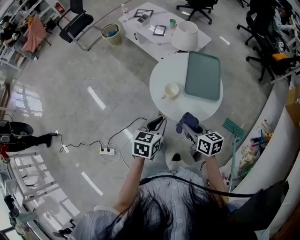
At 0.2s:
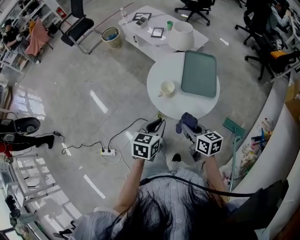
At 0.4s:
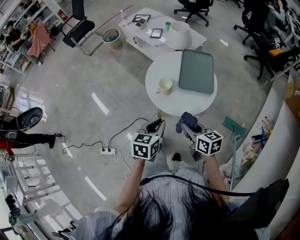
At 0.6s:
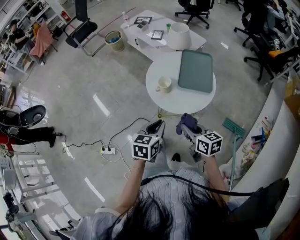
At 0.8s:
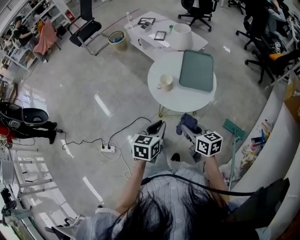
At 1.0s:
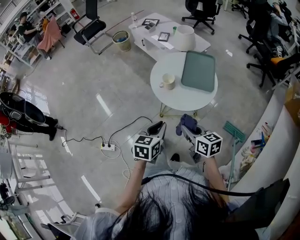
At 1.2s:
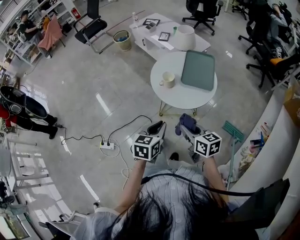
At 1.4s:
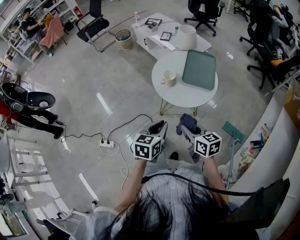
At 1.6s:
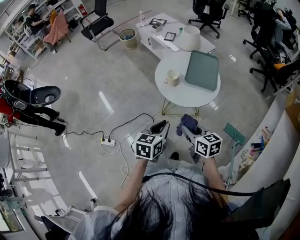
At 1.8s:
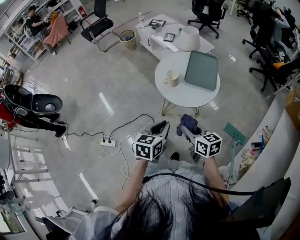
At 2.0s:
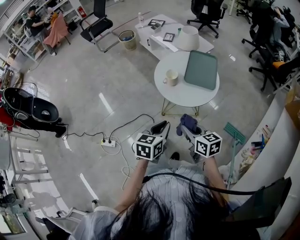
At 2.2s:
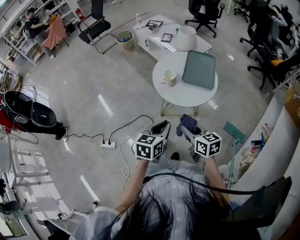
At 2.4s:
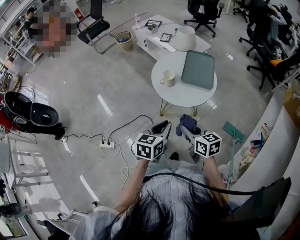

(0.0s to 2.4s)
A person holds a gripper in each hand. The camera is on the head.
0.0s - 1.2s: The two grippers go roughly 15 cm backward.
1.2s - 2.4s: The grippers move only a little.

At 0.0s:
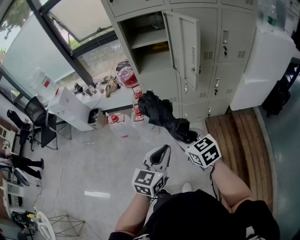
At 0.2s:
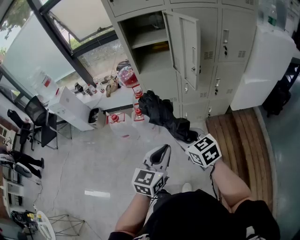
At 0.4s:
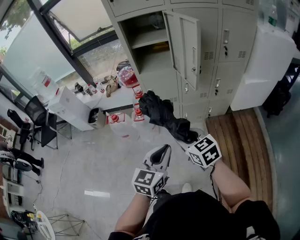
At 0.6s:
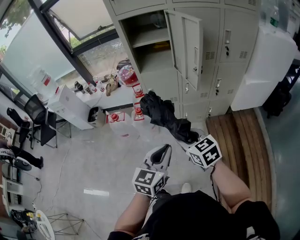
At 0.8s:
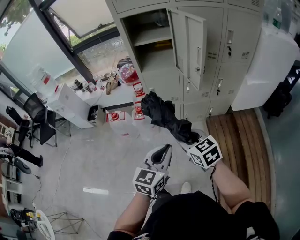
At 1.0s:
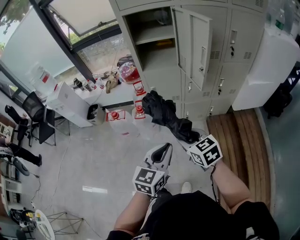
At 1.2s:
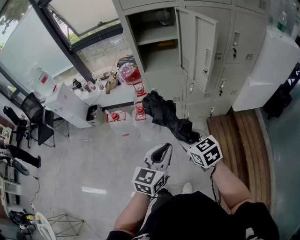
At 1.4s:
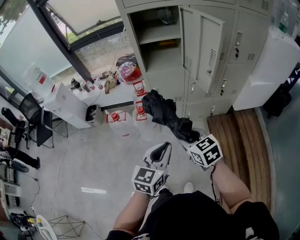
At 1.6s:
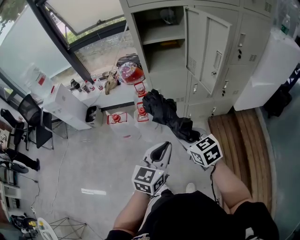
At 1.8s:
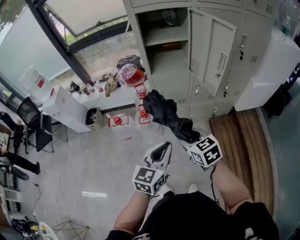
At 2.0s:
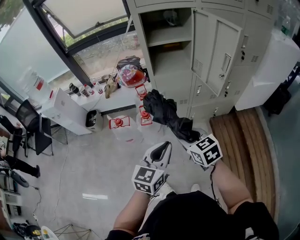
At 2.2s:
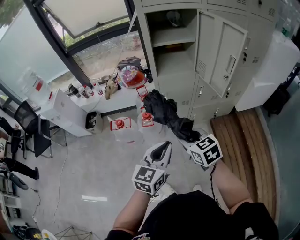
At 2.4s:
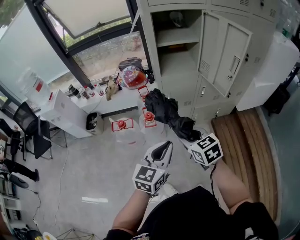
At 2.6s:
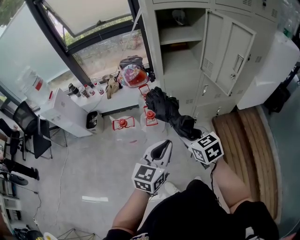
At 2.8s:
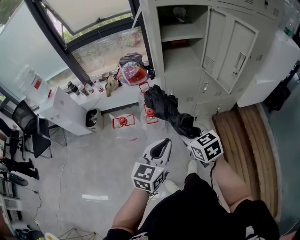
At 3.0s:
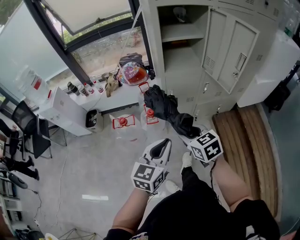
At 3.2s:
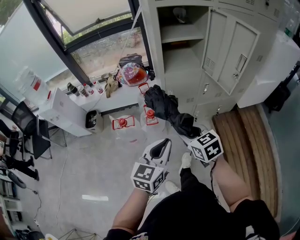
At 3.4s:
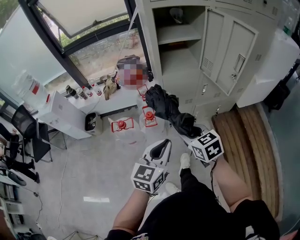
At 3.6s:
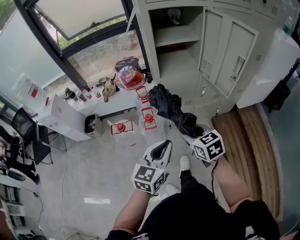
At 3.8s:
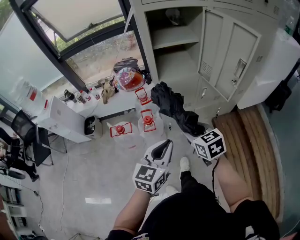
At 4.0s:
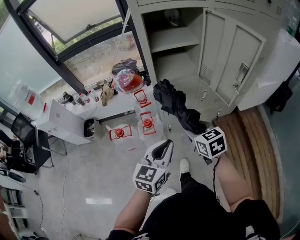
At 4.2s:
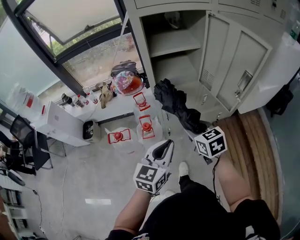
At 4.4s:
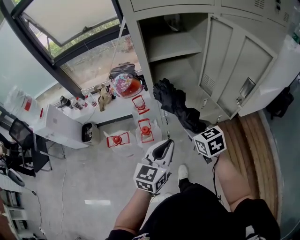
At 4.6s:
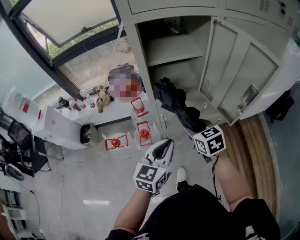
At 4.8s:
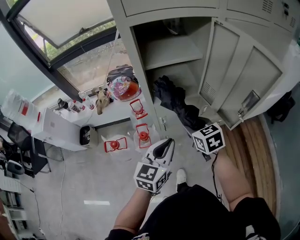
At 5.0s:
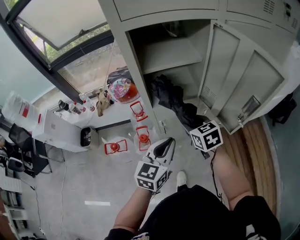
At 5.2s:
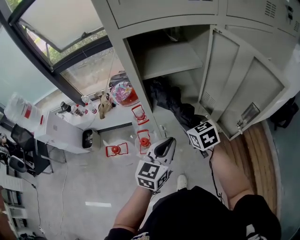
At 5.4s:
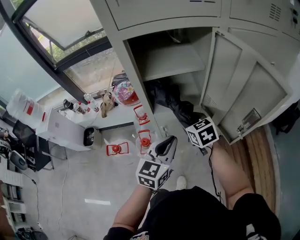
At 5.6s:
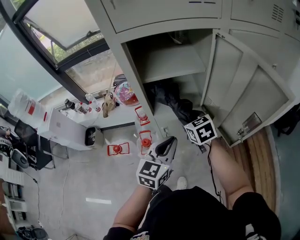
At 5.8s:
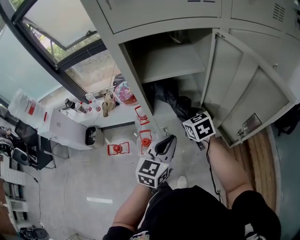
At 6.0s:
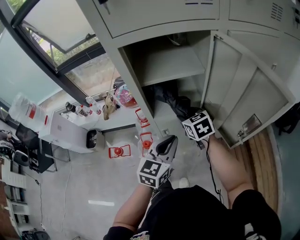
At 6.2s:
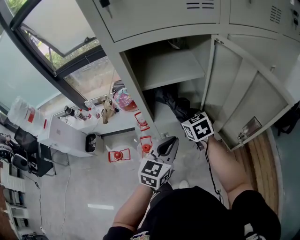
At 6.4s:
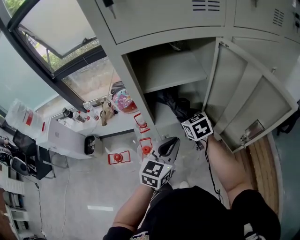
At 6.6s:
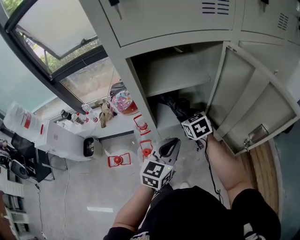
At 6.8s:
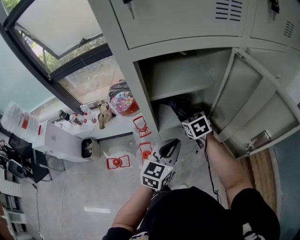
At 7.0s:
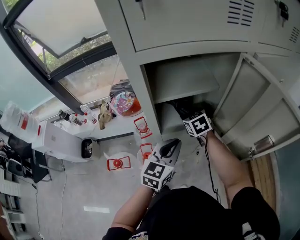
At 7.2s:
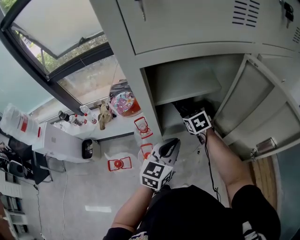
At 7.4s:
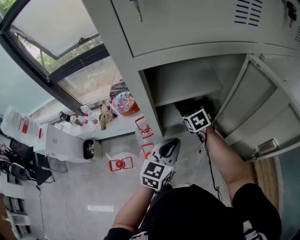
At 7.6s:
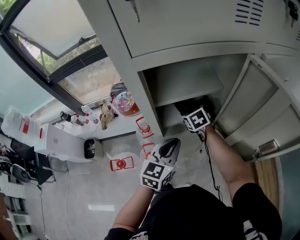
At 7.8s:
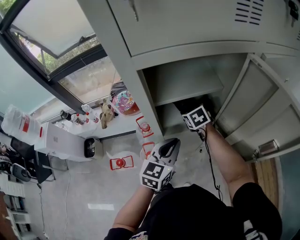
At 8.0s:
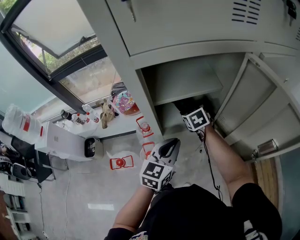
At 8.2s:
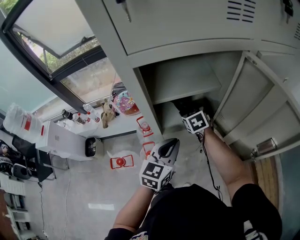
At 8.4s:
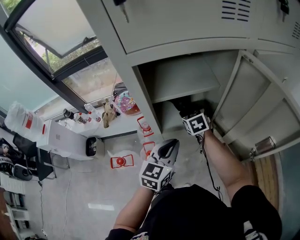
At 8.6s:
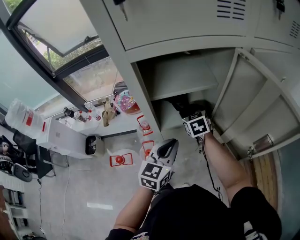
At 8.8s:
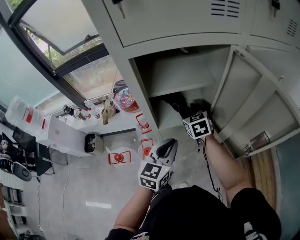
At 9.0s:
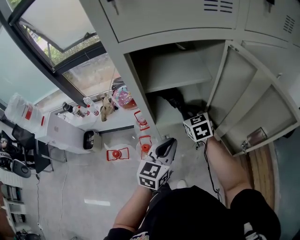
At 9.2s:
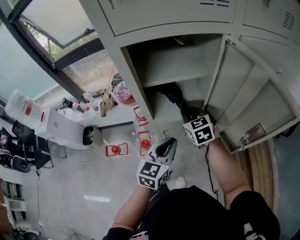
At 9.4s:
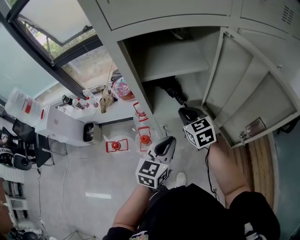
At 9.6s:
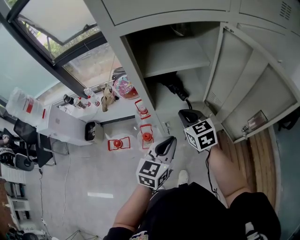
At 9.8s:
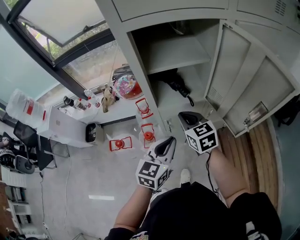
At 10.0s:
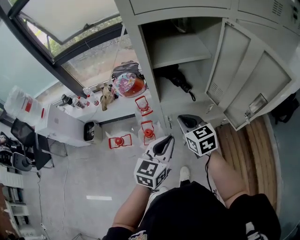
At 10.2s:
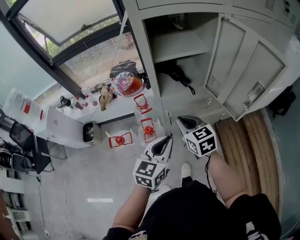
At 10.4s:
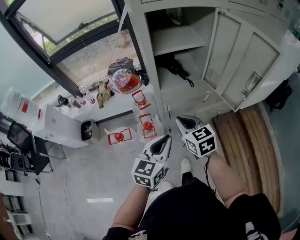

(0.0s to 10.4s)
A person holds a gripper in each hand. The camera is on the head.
0.0s - 1.4s: The left gripper shifts about 10 cm forward and to the left; the right gripper goes some 5 cm forward.
1.4s - 3.0s: The two grippers go roughly 15 cm to the left and forward.
3.0s - 4.4s: The grippers both shift forward and to the right by roughly 20 cm.
4.4s - 6.0s: Both grippers travel together forward, roughly 15 cm.
6.0s - 7.4s: The right gripper is displaced forward by some 10 cm, while the left gripper shifts about 10 cm forward.
7.4s - 9.0s: The grippers both shift backward by some 5 cm.
9.0s - 10.4s: The right gripper moves backward, approximately 25 cm. The left gripper heads backward and to the left, covering roughly 20 cm.

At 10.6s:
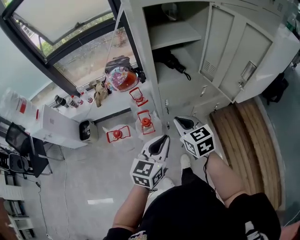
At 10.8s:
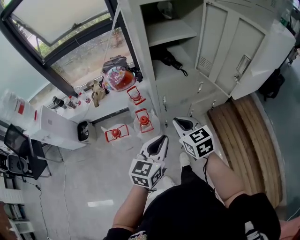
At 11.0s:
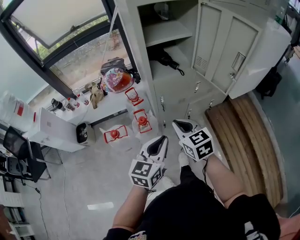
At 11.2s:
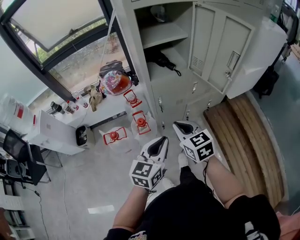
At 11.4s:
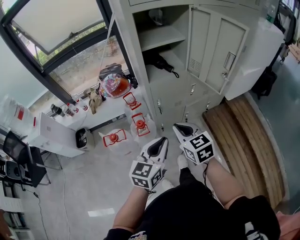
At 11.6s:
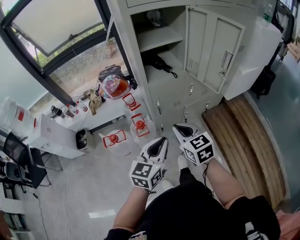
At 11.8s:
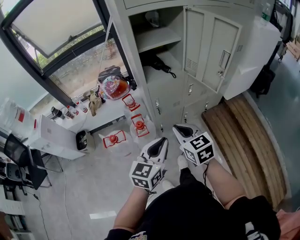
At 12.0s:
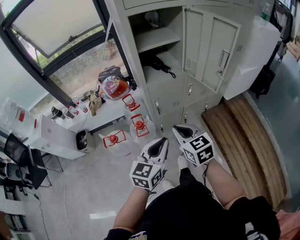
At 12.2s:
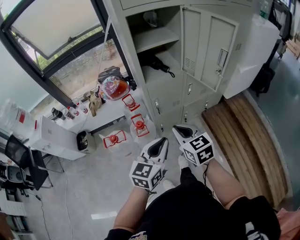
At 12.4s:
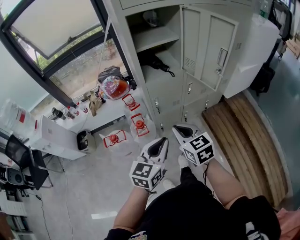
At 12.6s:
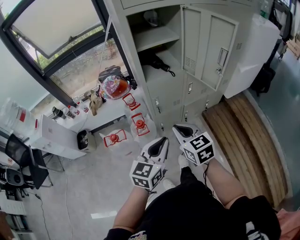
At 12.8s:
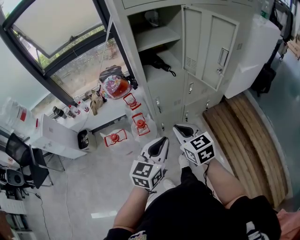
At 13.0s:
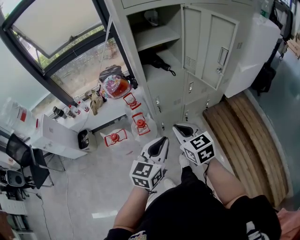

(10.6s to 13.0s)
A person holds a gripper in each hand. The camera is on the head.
10.6s - 11.8s: The grippers both shift backward by roughly 10 cm.
11.8s - 13.0s: Both grippers stay put.

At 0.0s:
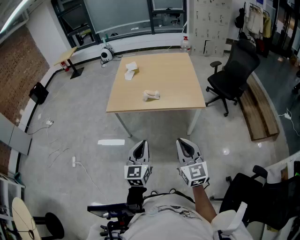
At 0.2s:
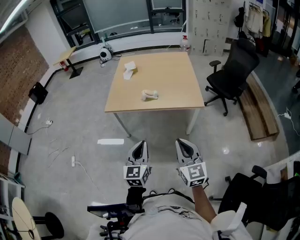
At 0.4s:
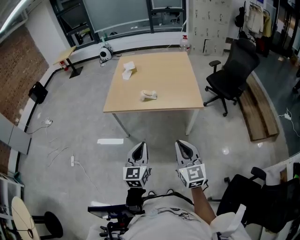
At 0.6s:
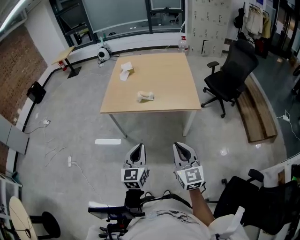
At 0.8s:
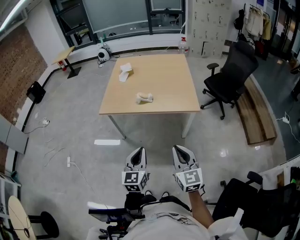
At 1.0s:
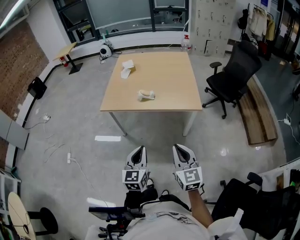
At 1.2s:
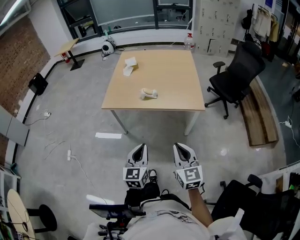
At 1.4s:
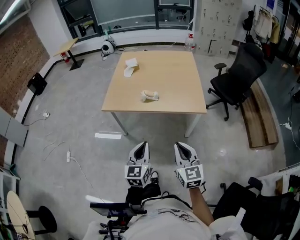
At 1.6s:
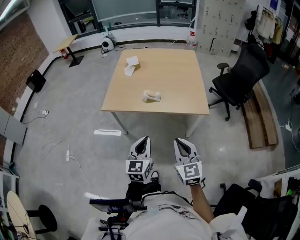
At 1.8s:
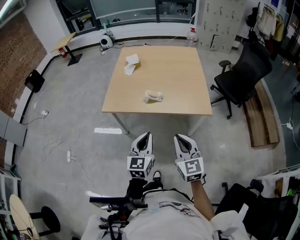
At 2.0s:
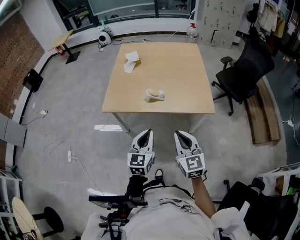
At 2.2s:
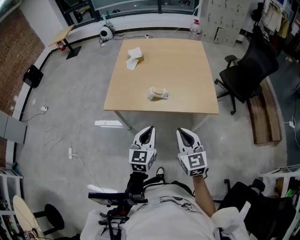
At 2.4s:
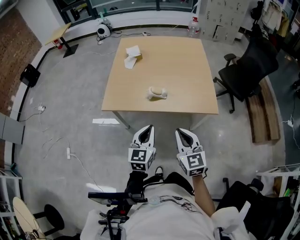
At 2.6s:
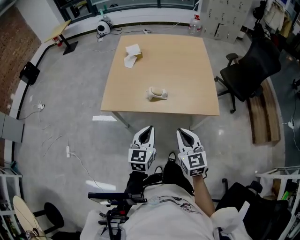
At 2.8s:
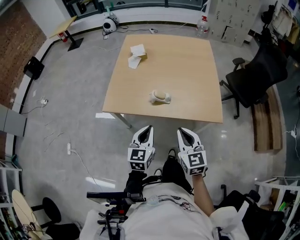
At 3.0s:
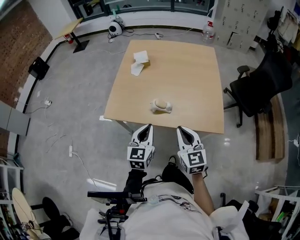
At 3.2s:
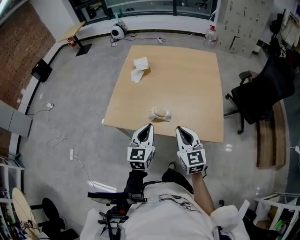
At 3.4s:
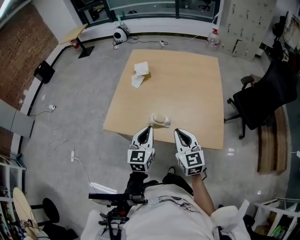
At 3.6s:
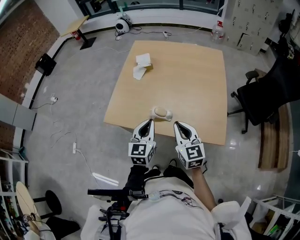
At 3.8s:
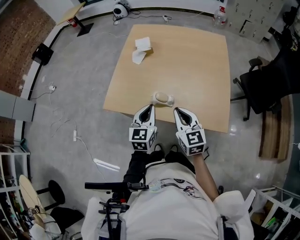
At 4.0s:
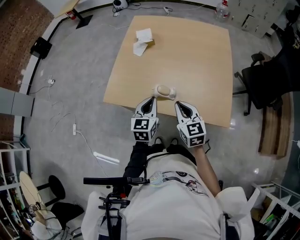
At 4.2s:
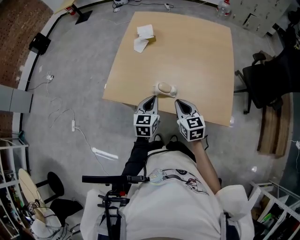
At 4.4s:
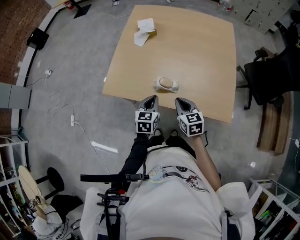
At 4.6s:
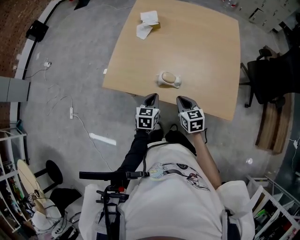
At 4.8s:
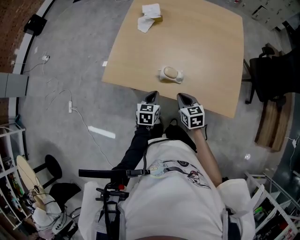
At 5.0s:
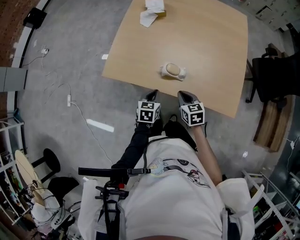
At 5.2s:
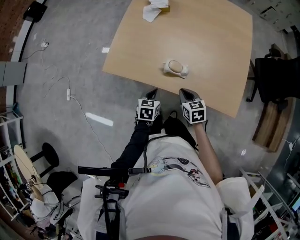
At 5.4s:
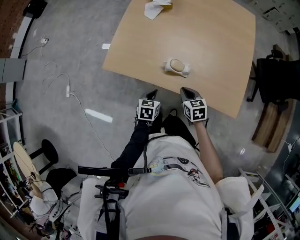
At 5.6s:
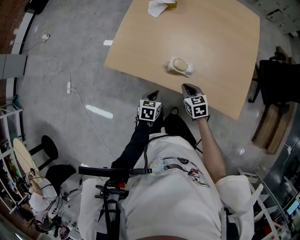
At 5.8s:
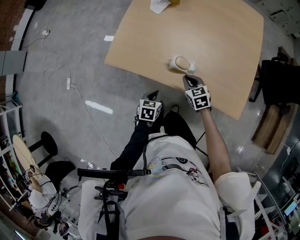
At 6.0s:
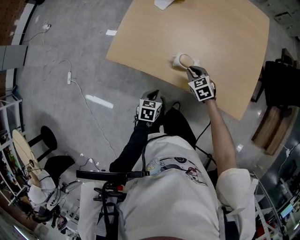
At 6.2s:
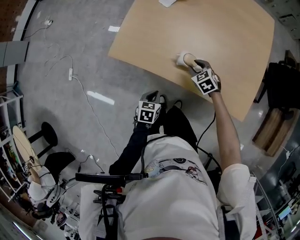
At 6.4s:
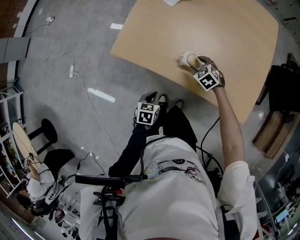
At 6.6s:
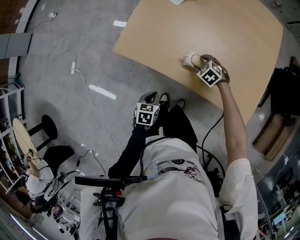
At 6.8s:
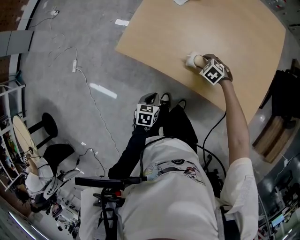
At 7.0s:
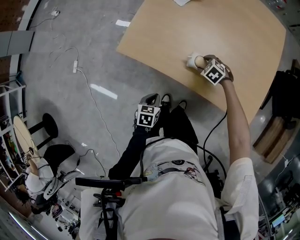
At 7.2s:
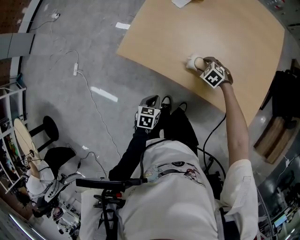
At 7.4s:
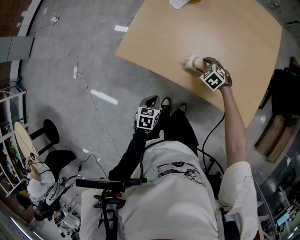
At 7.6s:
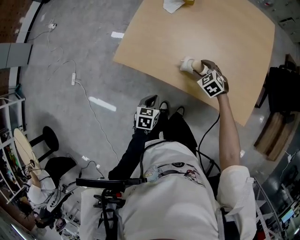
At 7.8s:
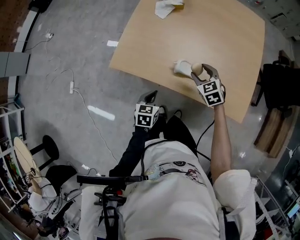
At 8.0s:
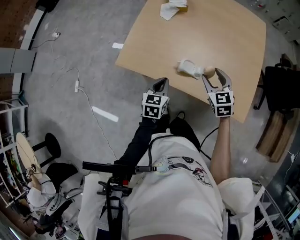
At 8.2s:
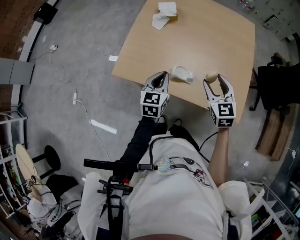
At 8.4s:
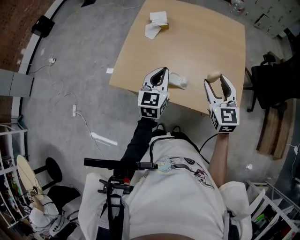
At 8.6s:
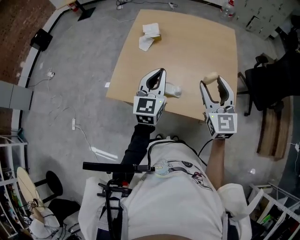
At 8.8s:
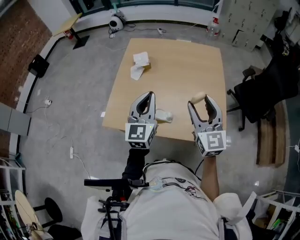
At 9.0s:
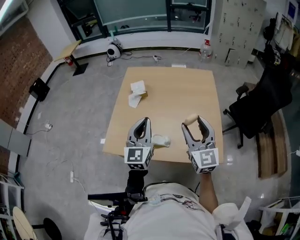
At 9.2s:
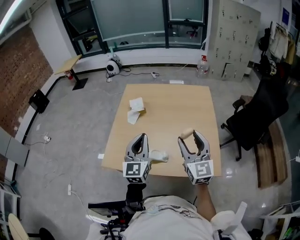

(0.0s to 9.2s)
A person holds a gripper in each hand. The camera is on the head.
0.0s - 1.6s: Both grippers travel together forward, roughly 10 cm.
1.6s - 3.0s: Both grippers travel together forward, roughly 25 cm.
3.0s - 4.6s: Both grippers travel together downward and forward, roughly 20 cm. The right gripper rotates some 30 degrees. The left gripper turns by about 20 degrees.
4.6s - 6.2s: The left gripper heads downward, to the left and backward, covering about 15 cm, and turns by approximately 20 degrees. Meanwhile the right gripper moves downward and forward, about 20 cm, turns by some 40 degrees, and opens its fingers.
6.2s - 7.6s: The right gripper opens.
7.6s - 9.2s: Both grippers travel together upward, approximately 40 cm. The right gripper tilts its fingers about 60 degrees upward; the left gripper angles its fingers upward, by approximately 50 degrees.
